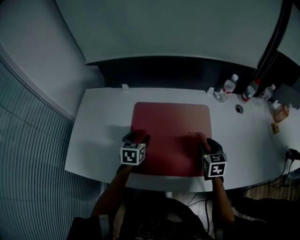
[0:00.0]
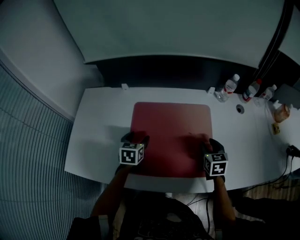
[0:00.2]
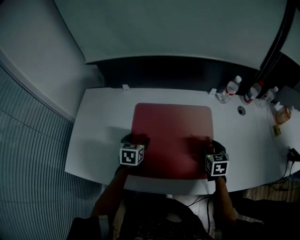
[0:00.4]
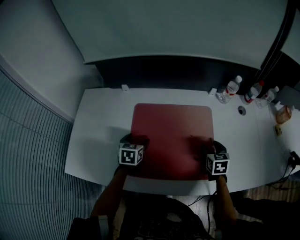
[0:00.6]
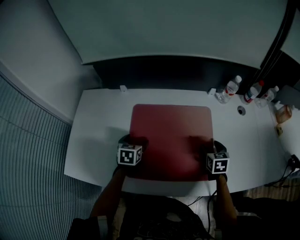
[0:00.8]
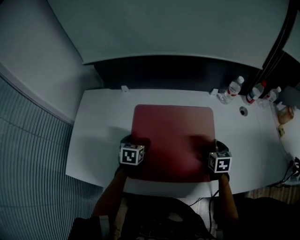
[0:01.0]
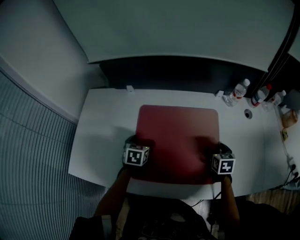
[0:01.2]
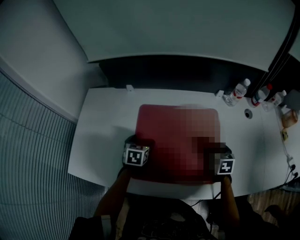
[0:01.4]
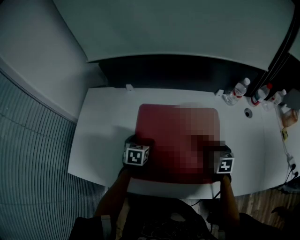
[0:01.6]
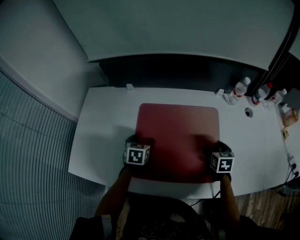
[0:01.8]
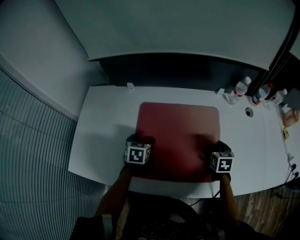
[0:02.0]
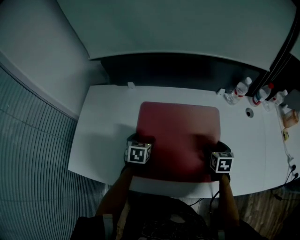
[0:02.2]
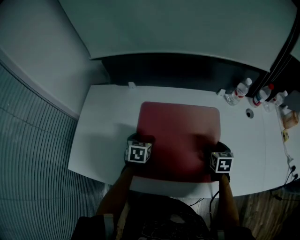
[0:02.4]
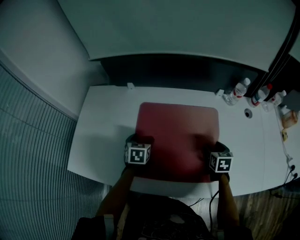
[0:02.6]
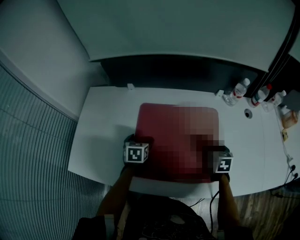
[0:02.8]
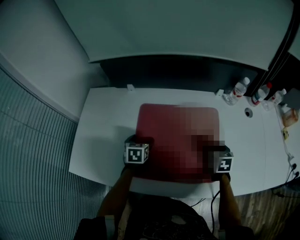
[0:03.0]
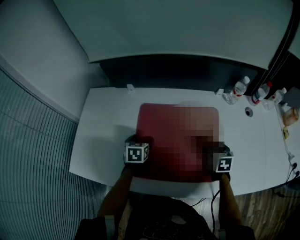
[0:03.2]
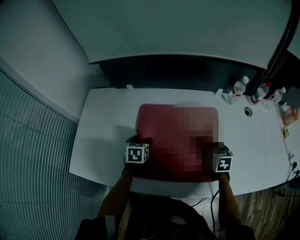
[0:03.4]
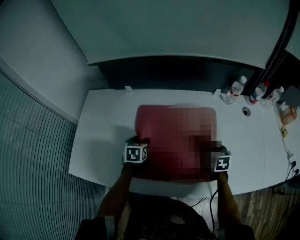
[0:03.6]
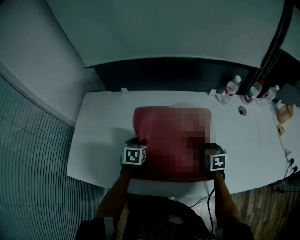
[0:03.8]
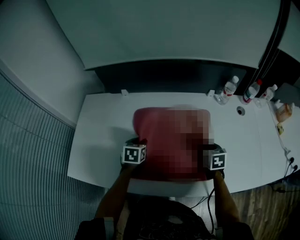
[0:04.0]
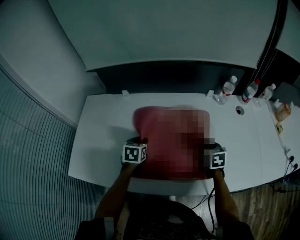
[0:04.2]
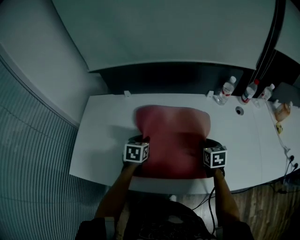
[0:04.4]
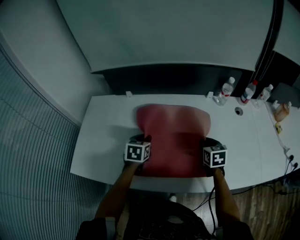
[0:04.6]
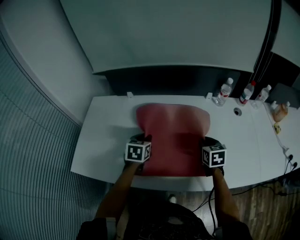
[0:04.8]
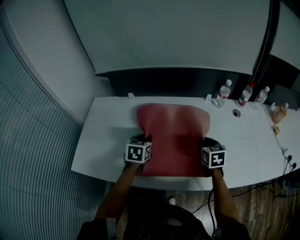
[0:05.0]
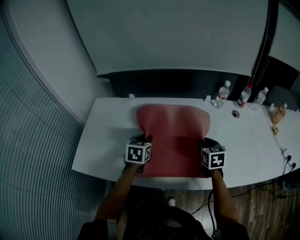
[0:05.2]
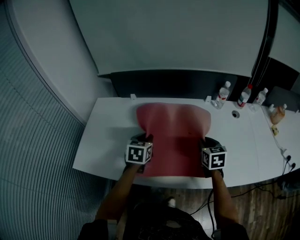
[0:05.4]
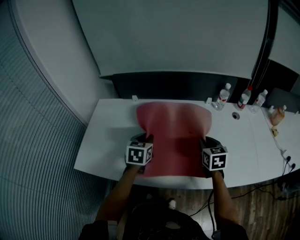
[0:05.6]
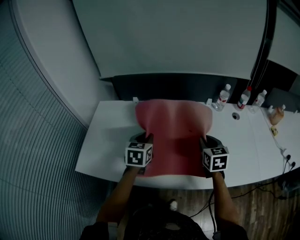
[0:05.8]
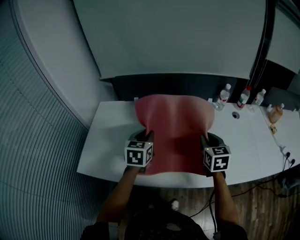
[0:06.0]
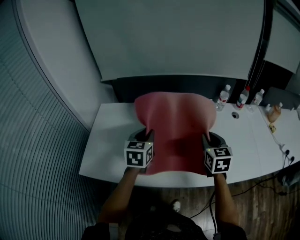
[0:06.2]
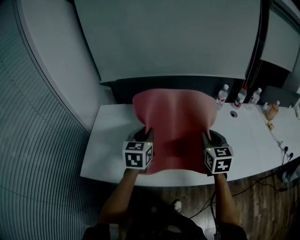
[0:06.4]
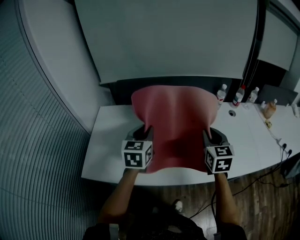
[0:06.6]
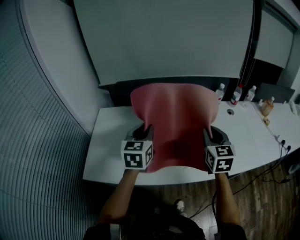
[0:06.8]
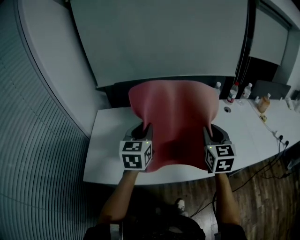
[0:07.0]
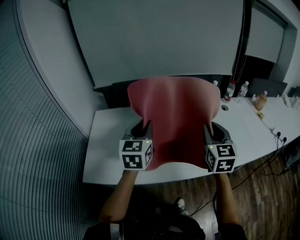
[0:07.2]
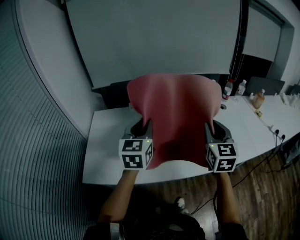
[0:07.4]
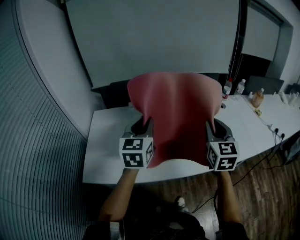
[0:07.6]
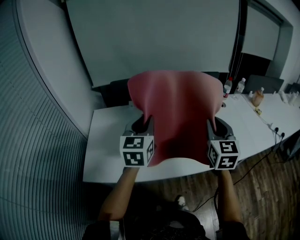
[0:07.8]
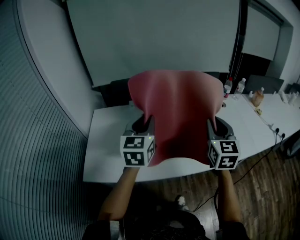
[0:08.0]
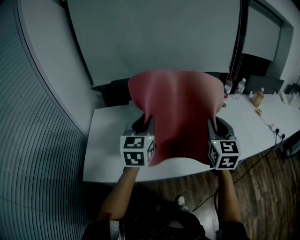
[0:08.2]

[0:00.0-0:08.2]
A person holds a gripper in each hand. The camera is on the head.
0:00.0 to 0:01.6: The two grippers go roughly 5 cm downward. The right gripper opens its fingers. Meanwhile the left gripper opens its fingers.
0:01.6 to 0:03.2: The grippers make only small movements.
0:03.2 to 0:05.0: The right gripper goes approximately 10 cm upward, and closes its fingers; the left gripper heads upward and to the right, covering approximately 15 cm, and closes.
0:05.0 to 0:06.6: The left gripper is displaced upward by approximately 15 cm, and rotates some 20 degrees, while the right gripper is displaced upward, to the left and backward by some 20 cm, and rotates about 20 degrees.
0:06.6 to 0:08.2: The right gripper shifts approximately 10 cm upward and backward, while the left gripper shifts some 5 cm upward.

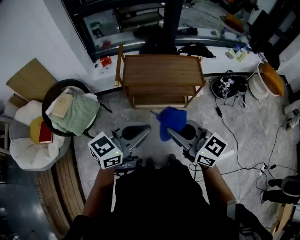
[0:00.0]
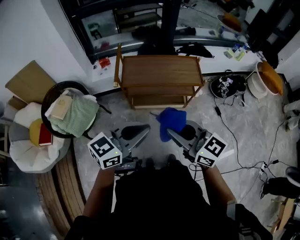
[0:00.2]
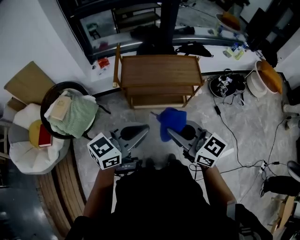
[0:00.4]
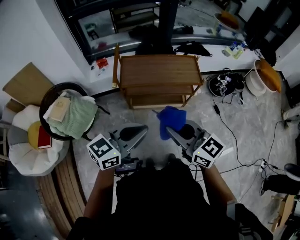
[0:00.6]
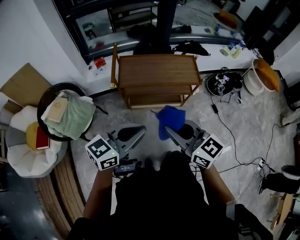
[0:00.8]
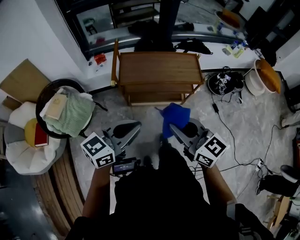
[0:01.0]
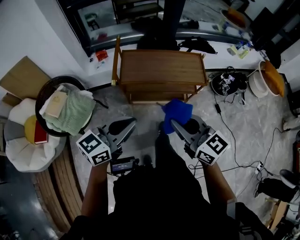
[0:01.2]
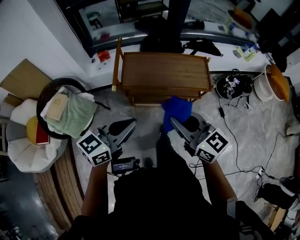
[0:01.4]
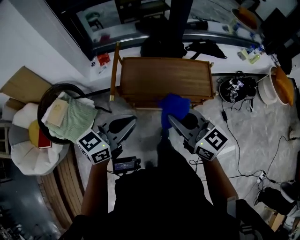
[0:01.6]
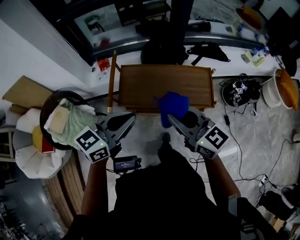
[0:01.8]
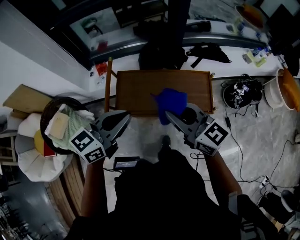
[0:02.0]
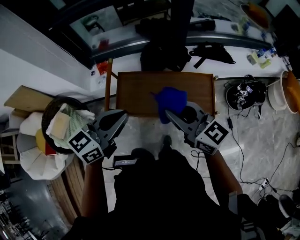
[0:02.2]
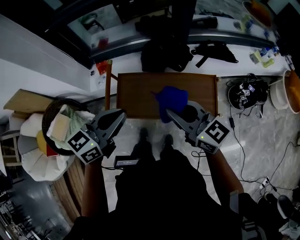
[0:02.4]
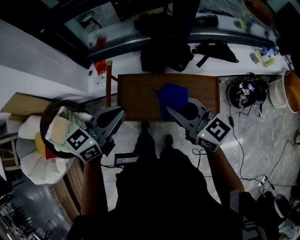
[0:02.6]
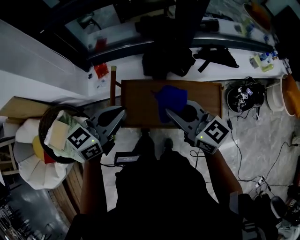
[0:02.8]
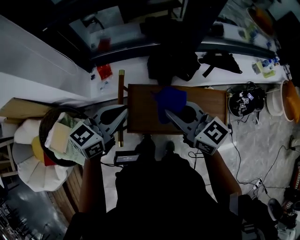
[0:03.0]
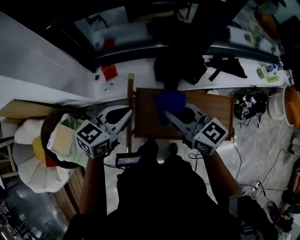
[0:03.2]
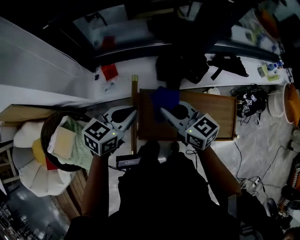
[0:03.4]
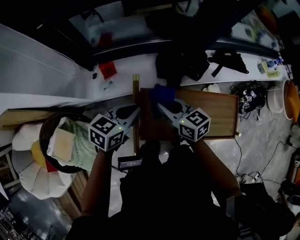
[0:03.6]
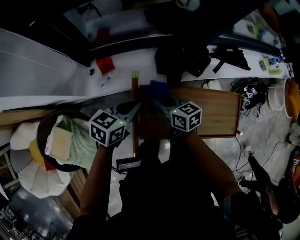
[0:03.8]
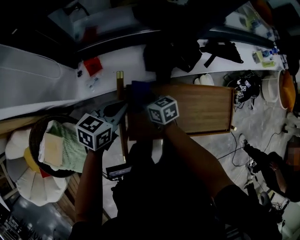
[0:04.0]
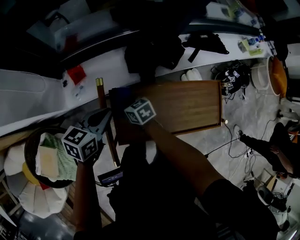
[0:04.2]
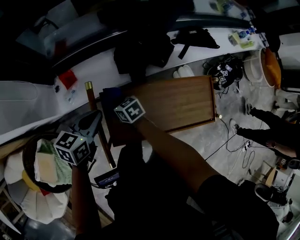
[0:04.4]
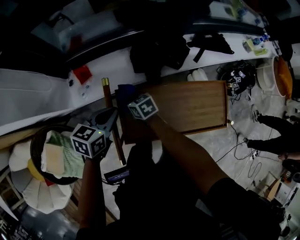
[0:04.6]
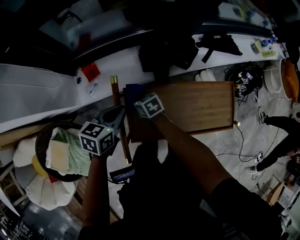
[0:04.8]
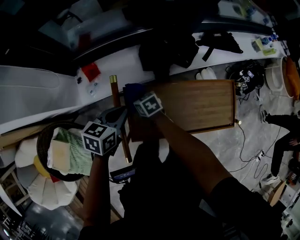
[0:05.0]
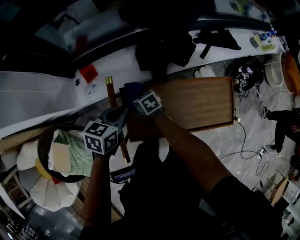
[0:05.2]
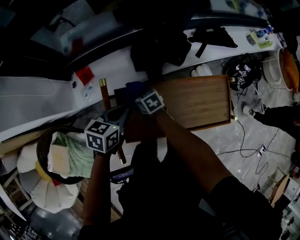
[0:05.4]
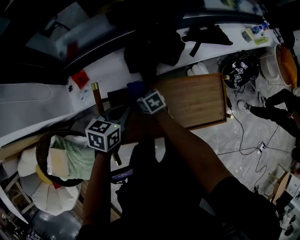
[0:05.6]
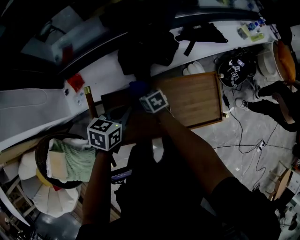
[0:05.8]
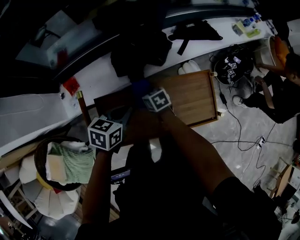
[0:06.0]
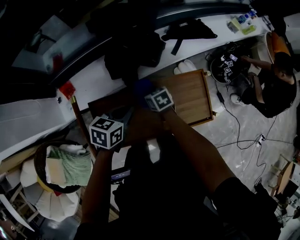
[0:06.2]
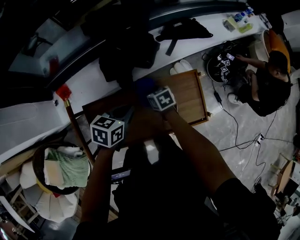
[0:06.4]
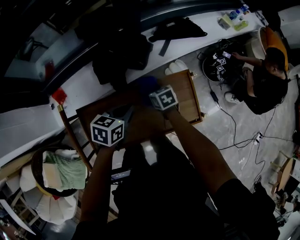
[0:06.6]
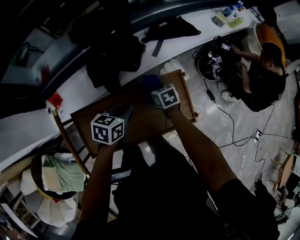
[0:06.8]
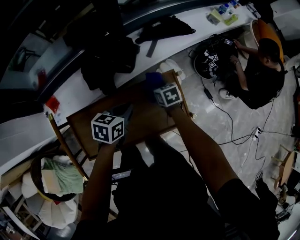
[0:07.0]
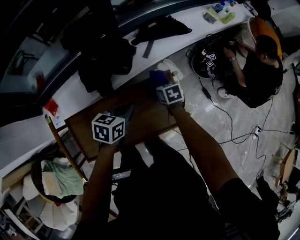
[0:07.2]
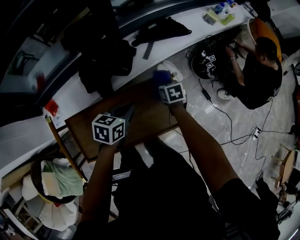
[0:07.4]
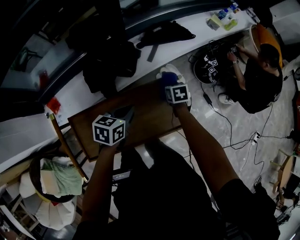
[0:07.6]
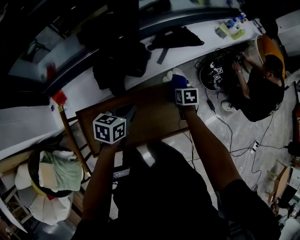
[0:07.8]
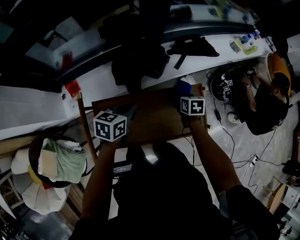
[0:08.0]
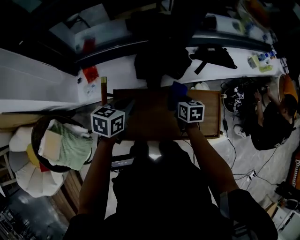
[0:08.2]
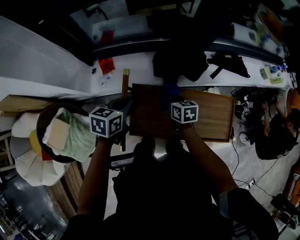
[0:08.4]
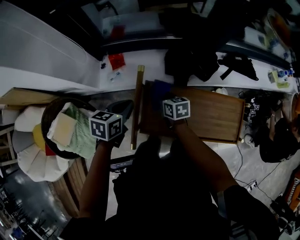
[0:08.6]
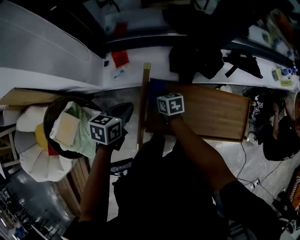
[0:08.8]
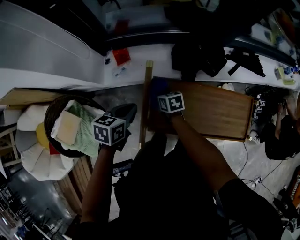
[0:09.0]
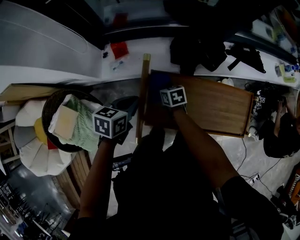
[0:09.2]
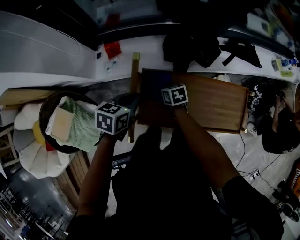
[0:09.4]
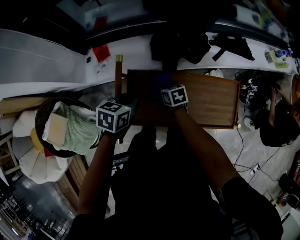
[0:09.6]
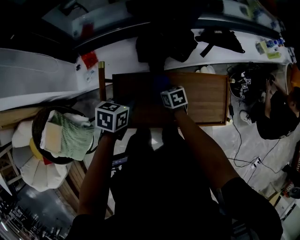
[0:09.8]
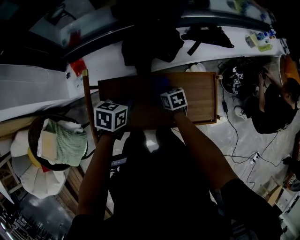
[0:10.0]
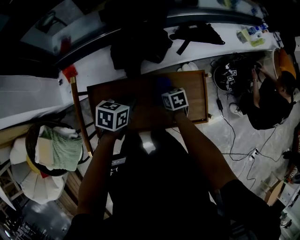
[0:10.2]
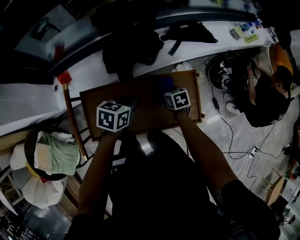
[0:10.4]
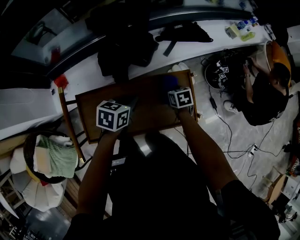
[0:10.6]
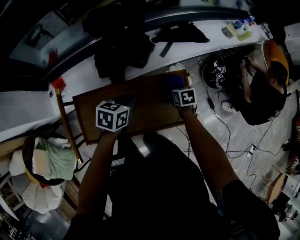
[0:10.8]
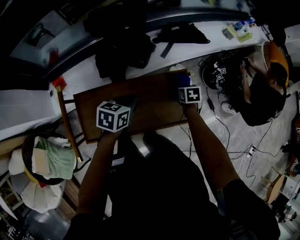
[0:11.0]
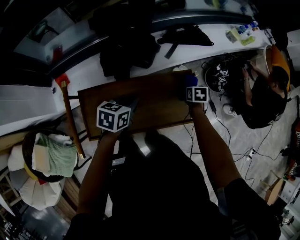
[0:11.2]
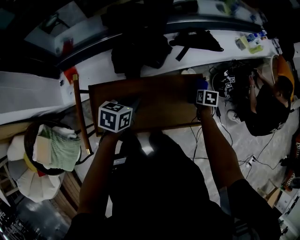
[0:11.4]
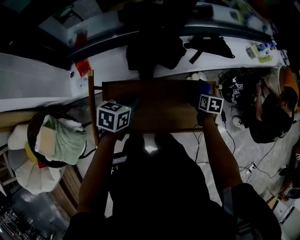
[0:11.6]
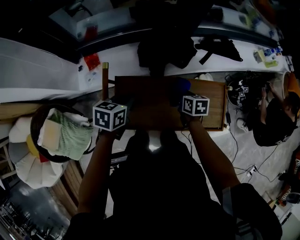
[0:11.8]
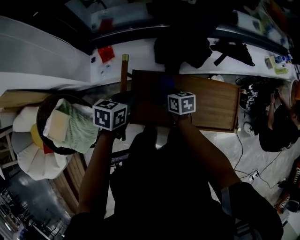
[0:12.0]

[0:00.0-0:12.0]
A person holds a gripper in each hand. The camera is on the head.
0:00.0 to 0:01.6: The two grippers go some 20 cm forward.
0:01.6 to 0:03.0: Both grippers travel together forward, approximately 30 cm.
0:03.0 to 0:04.4: The right gripper heads downward and to the left, covering about 35 cm, and tips its fingers downward by approximately 30 degrees. Meanwhile the left gripper goes roughly 20 cm downward and forward, and turns by some 20 degrees.
0:04.4 to 0:06.0: Both grippers move to the right, approximately 20 cm.
0:06.0 to 0:07.6: The left gripper shifts approximately 20 cm to the right; the right gripper is displaced to the right by some 35 cm, and turns by roughly 30 degrees.
0:07.6 to 0:09.0: The pair of grippers is taken roughly 50 cm. The right gripper turns by roughly 40 degrees; the left gripper rotates about 30 degrees.
0:09.0 to 0:10.4: Both grippers move to the right, roughly 40 cm. The left gripper swivels some 20 degrees.
0:10.4 to 0:12.0: The left gripper changes place by roughly 25 cm. Meanwhile the right gripper shifts by approximately 30 cm.

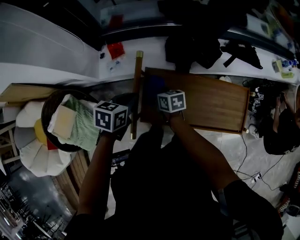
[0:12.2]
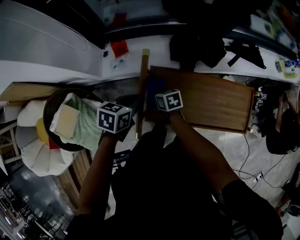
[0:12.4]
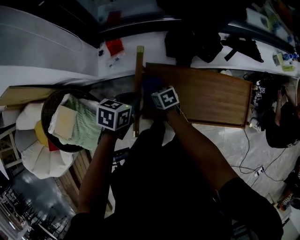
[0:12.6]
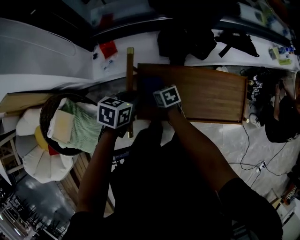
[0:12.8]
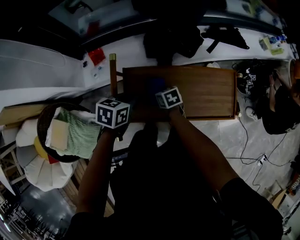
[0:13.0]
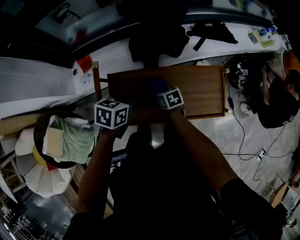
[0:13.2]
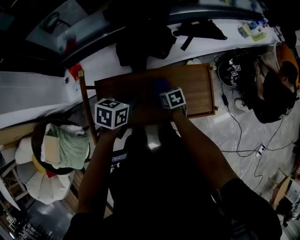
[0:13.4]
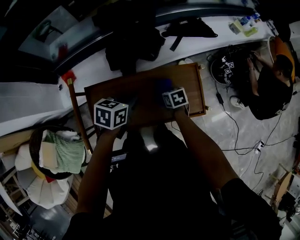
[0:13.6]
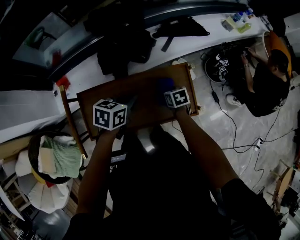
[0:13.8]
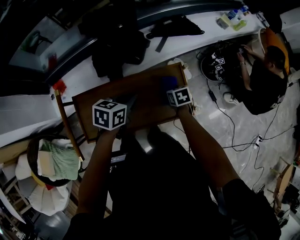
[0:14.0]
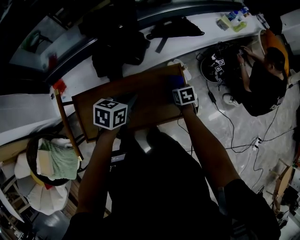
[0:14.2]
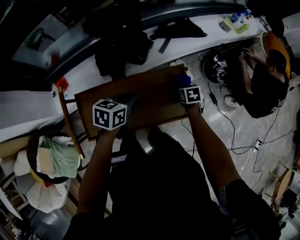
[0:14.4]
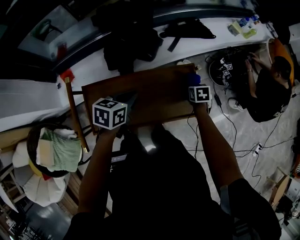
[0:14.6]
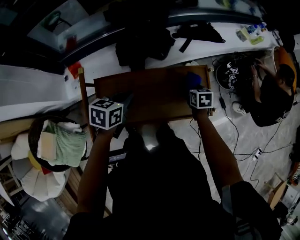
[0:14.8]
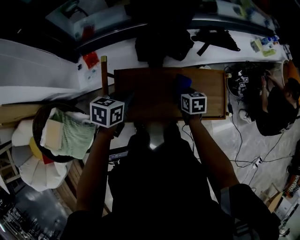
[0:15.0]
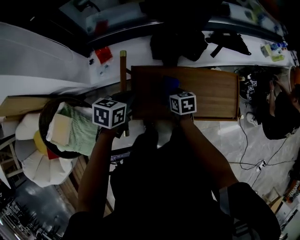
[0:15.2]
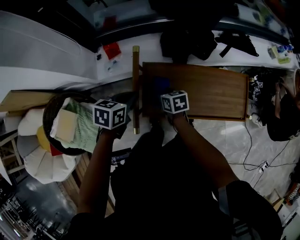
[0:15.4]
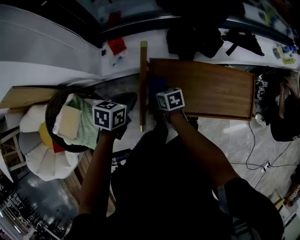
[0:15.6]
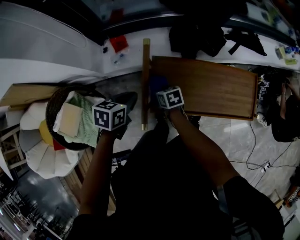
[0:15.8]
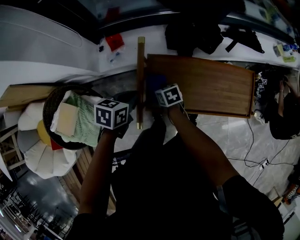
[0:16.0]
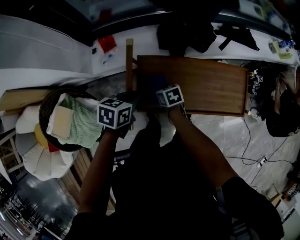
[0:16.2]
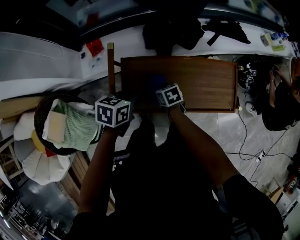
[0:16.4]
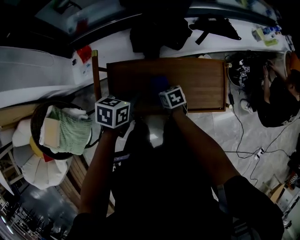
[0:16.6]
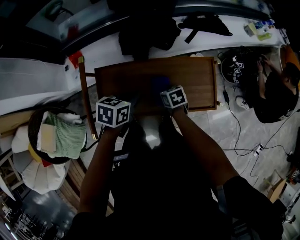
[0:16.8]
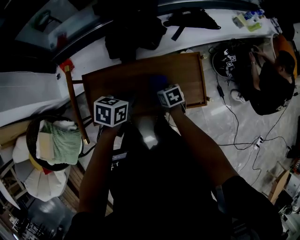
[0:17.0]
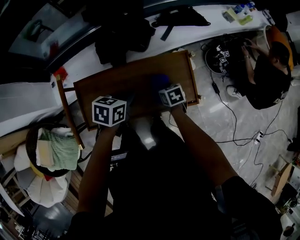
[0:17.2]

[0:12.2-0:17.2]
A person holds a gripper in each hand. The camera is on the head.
0:12.2 to 0:13.8: The left gripper ends up roughly 35 cm from where it was, and swivels roughly 20 degrees. Meanwhile the right gripper shifts by about 40 cm, and turns by roughly 30 degrees.
0:13.8 to 0:15.6: The right gripper shifts by about 50 cm, and changes its angle by about 20 degrees; the left gripper changes place by roughly 40 cm.
0:15.6 to 0:17.2: The two grippers go approximately 40 cm to the right.
